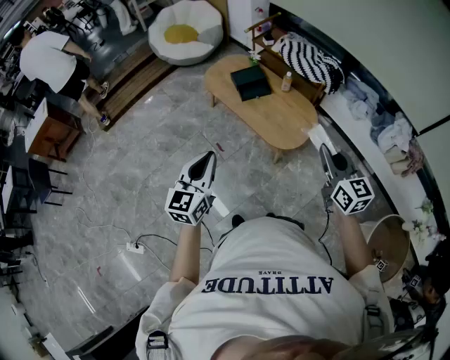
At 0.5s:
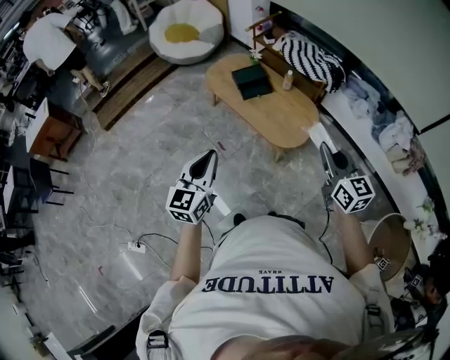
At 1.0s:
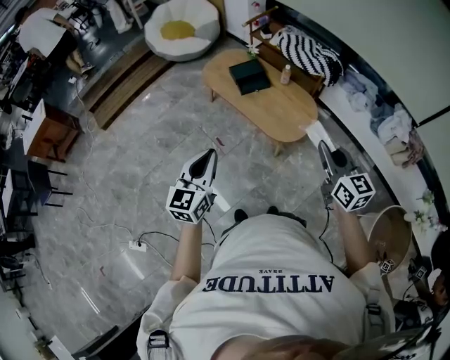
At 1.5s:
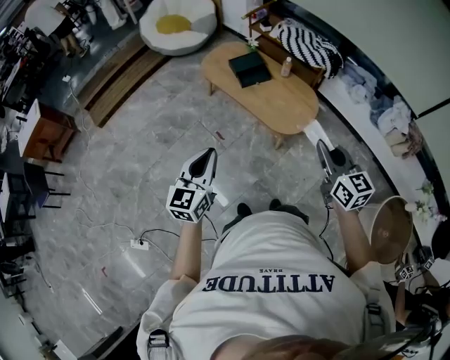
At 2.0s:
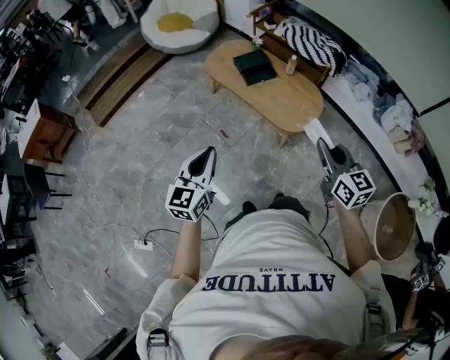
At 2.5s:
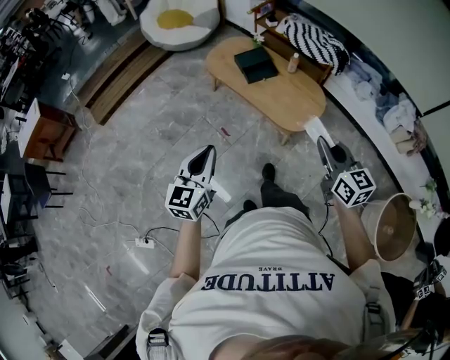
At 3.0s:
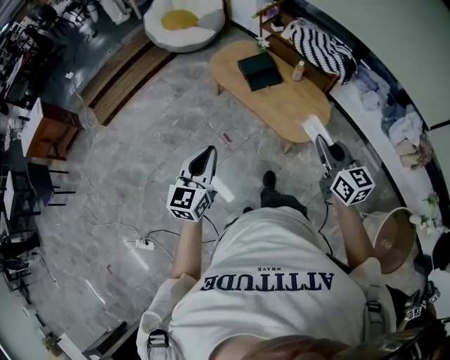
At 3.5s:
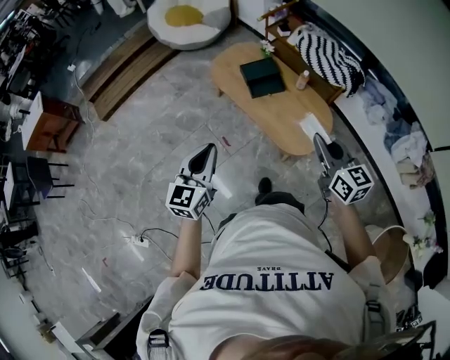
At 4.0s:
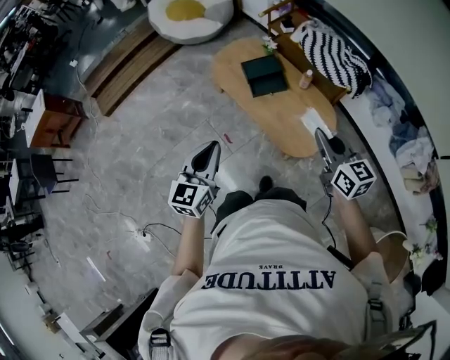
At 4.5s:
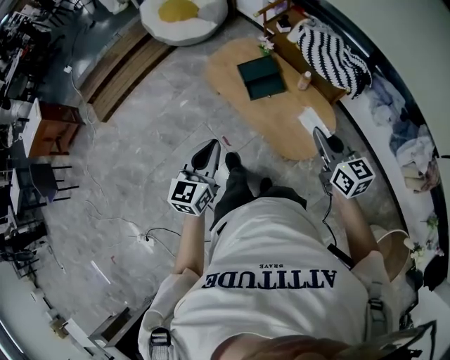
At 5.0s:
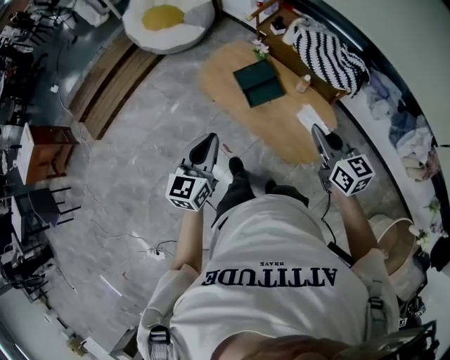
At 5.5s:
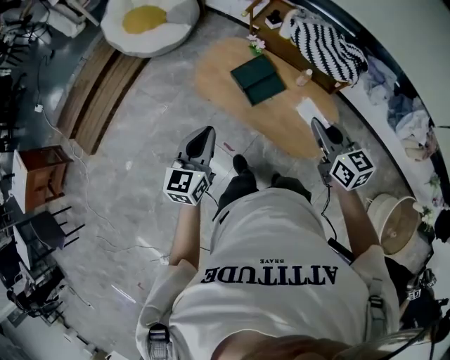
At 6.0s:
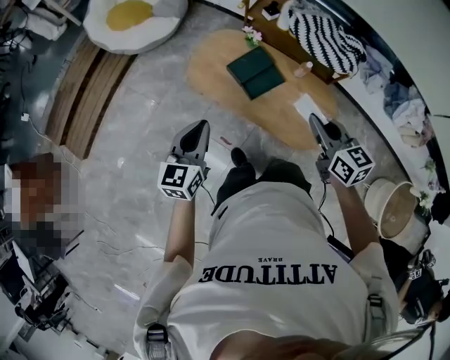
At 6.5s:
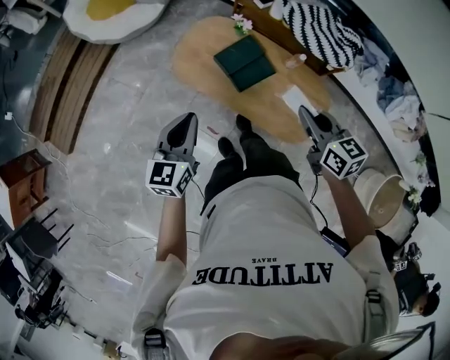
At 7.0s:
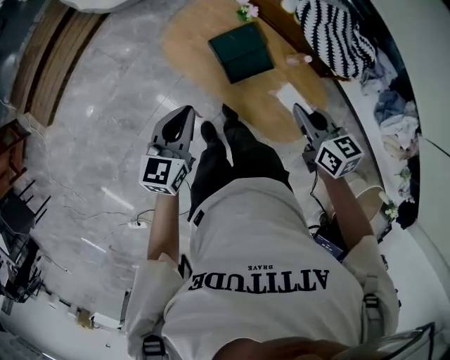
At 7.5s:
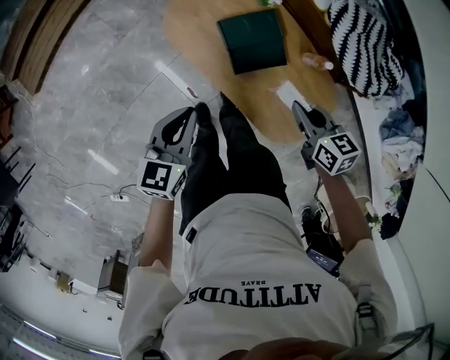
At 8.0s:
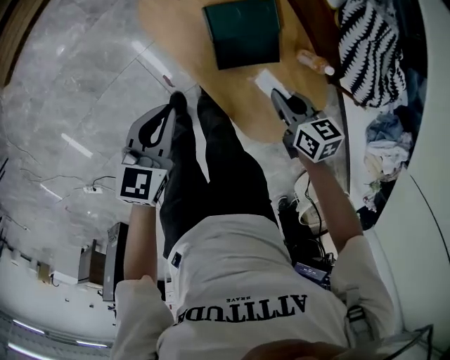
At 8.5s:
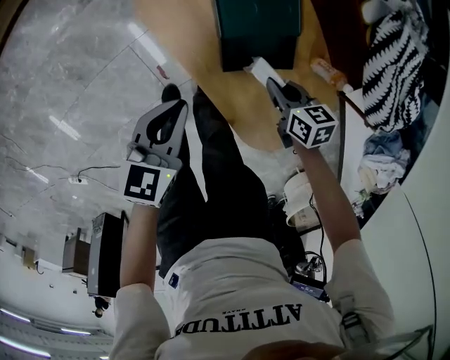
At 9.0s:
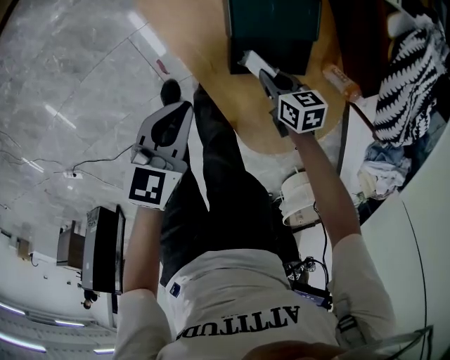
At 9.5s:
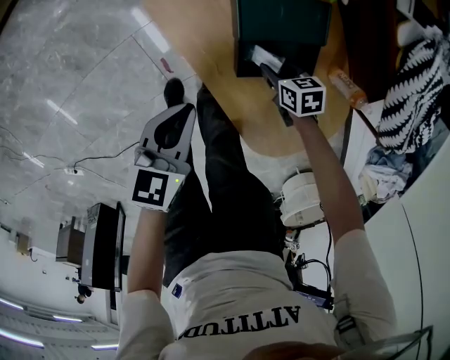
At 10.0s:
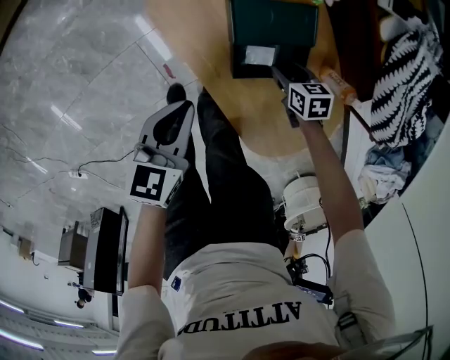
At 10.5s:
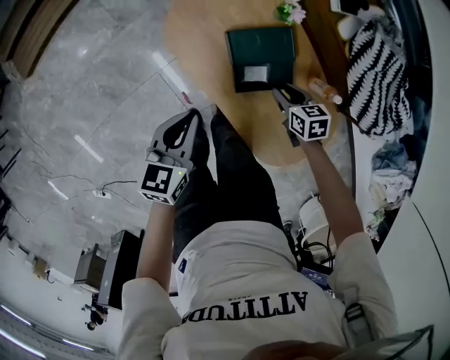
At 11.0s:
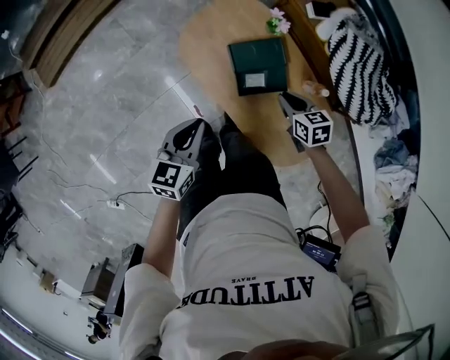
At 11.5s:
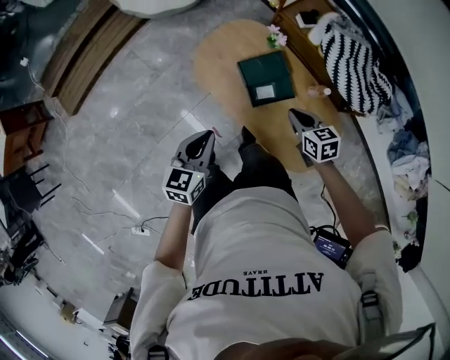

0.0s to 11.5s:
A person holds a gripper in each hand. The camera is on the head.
0.0s to 2.0s: The two grippers go about 10 cm to the left.
2.0s to 4.0s: The left gripper is displaced forward and to the right by about 30 cm. Meanwhile the right gripper heads forward, covering roughly 30 cm.
4.0s to 6.0s: Both grippers travel together forward and to the left, roughly 30 cm.
6.0s to 7.5s: The grippers both shift downward and forward by some 25 cm. The right gripper swivels about 30 degrees.
7.5s to 9.5s: The left gripper heads downward, covering roughly 25 cm. Meanwhile the right gripper heads downward, covering about 40 cm, turns by roughly 30 degrees, and opens its fingers.
9.5s to 11.5s: The two grippers go approximately 35 cm upward. The right gripper changes its angle by some 30 degrees, and closes its fingers.

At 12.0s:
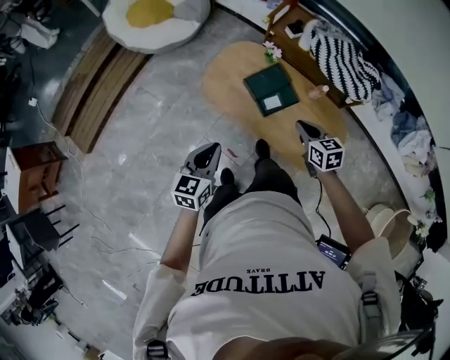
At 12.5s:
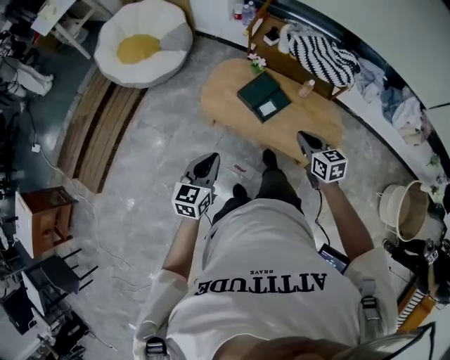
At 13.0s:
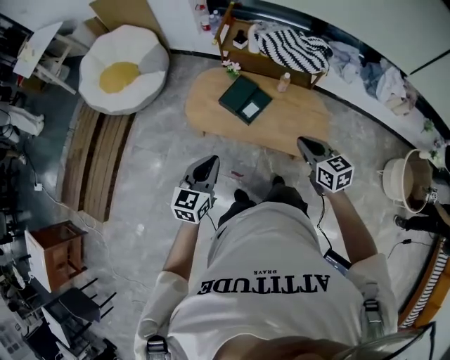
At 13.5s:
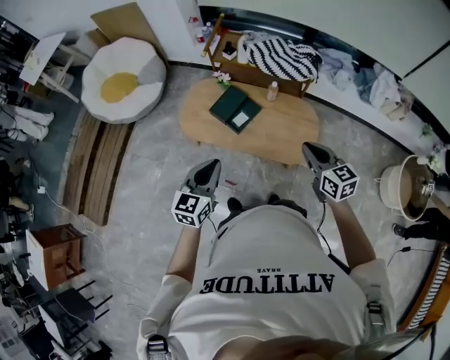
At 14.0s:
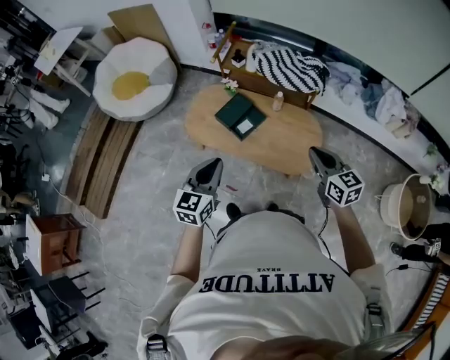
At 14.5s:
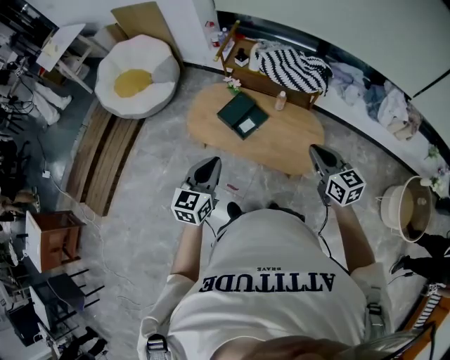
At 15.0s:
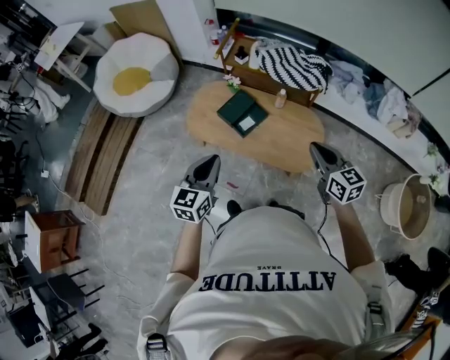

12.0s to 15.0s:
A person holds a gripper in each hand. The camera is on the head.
12.0s to 13.5s: The left gripper heads to the right, upward and backward, covering about 20 cm, and swivels about 20 degrees. Meanwhile the right gripper shifts roughly 30 cm backward, upward and to the right, and turns by some 20 degrees.
13.5s to 15.0s: The grippers move only a little.

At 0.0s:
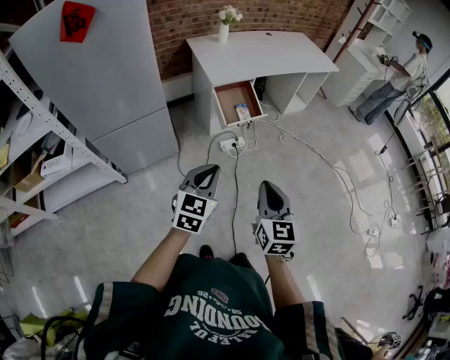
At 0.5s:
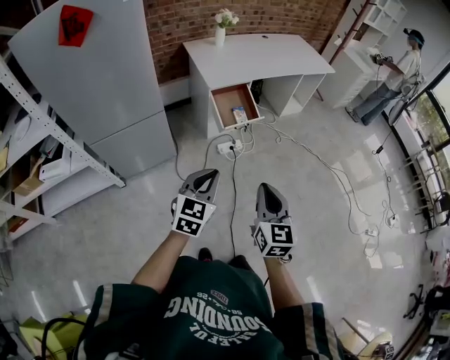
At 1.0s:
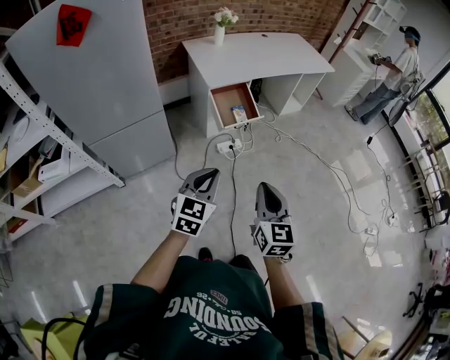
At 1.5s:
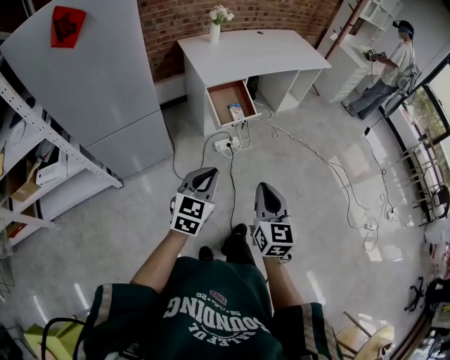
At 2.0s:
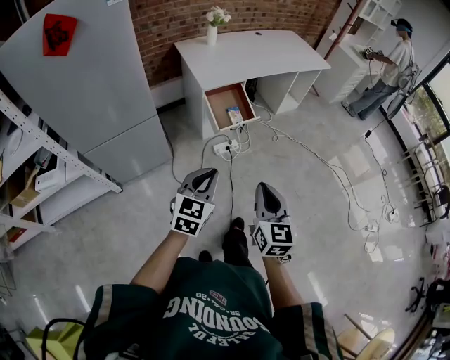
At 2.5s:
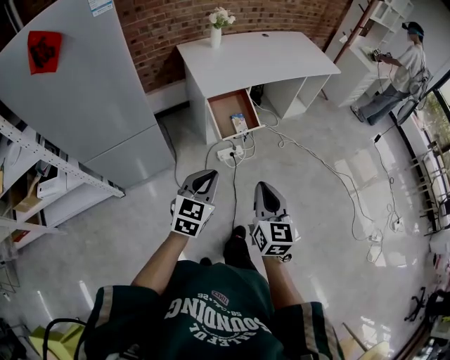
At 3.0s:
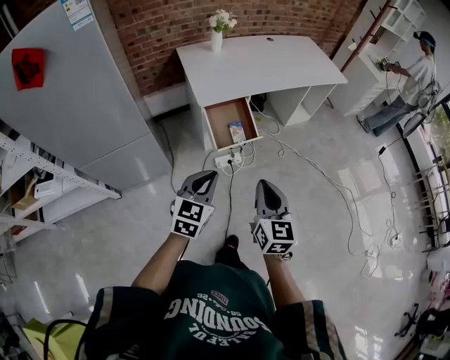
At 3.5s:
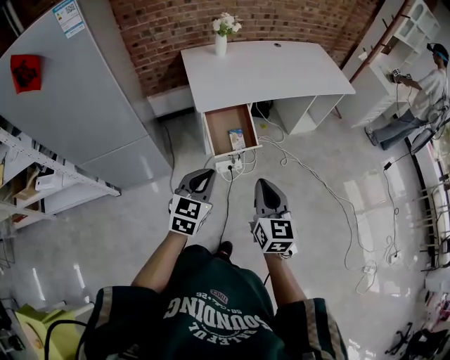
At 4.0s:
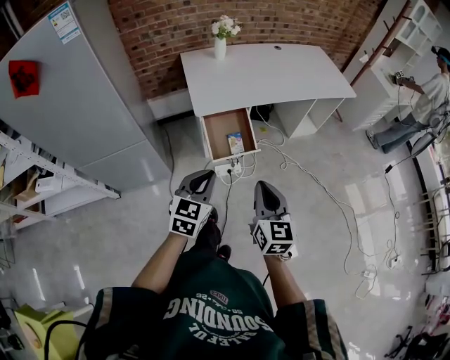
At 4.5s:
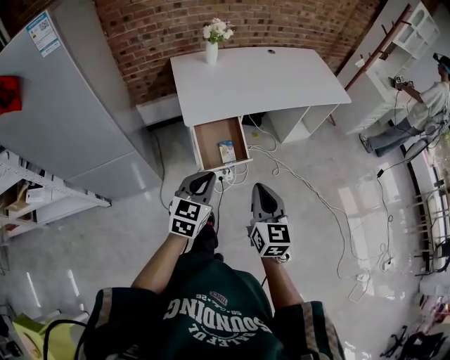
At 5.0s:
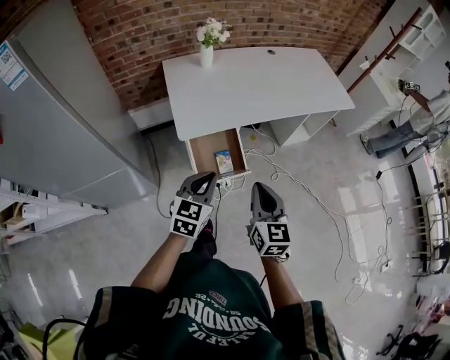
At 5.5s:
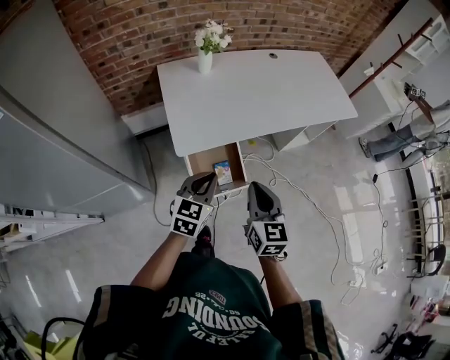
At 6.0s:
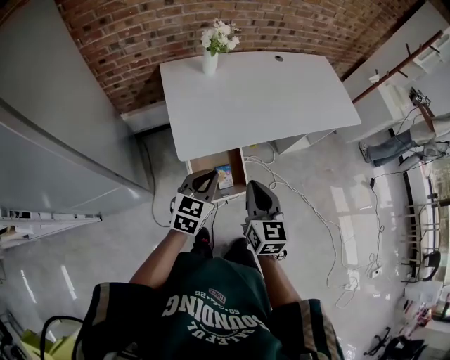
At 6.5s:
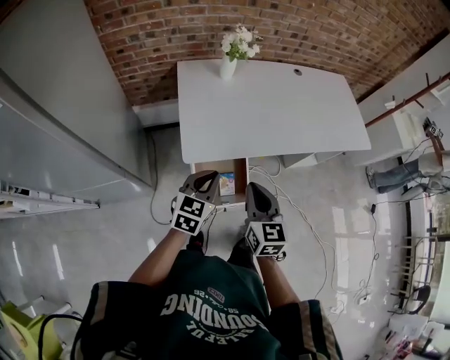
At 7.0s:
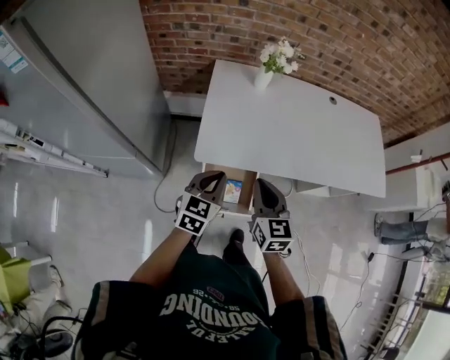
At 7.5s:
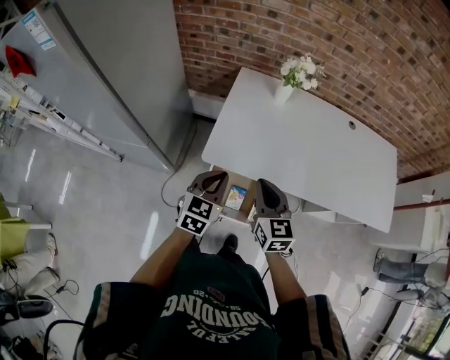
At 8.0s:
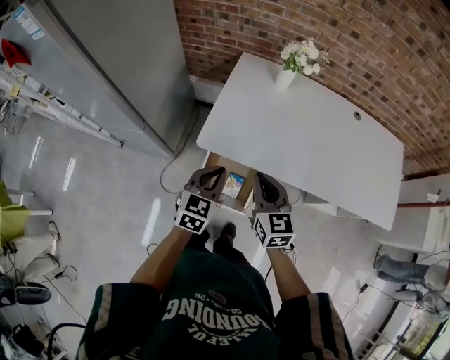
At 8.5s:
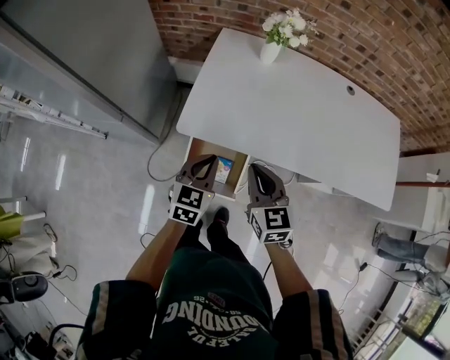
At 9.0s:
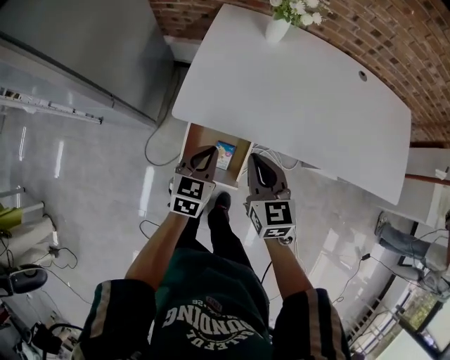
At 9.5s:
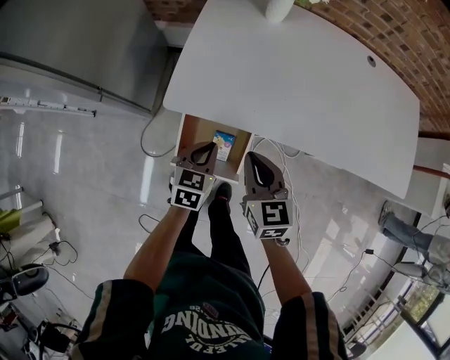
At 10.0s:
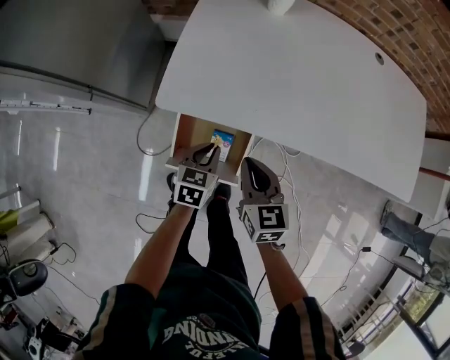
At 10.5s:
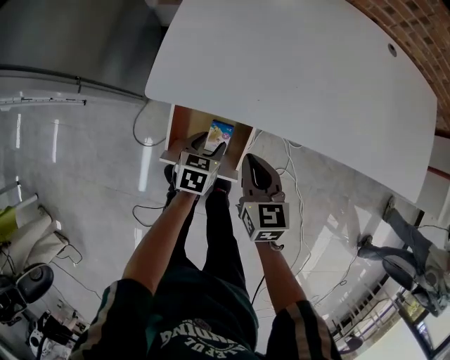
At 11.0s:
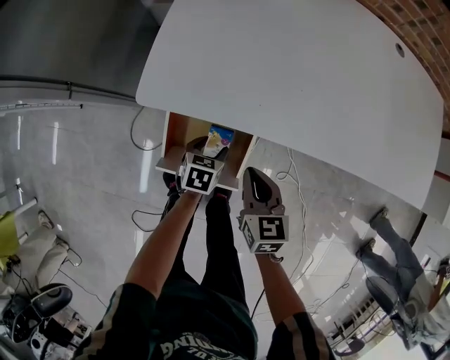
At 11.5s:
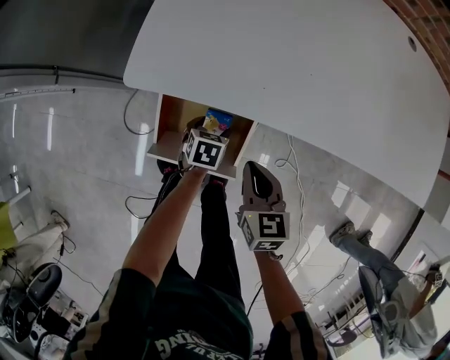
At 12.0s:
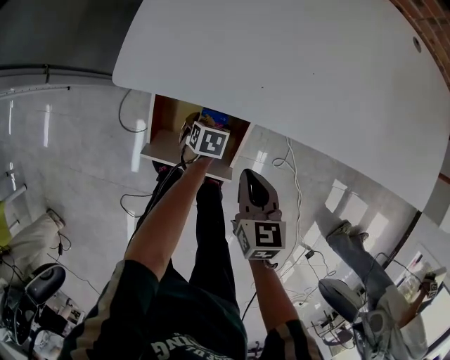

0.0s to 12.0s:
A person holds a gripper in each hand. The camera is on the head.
0.0s to 2.0s: The grippers make only small movements.
2.0s to 4.0s: Both grippers travel together forward, some 25 cm.
4.0s to 6.0s: Both grippers move forward, about 30 cm.
6.0s to 8.0s: The left gripper shifts by approximately 5 cm, and swivels approximately 40 degrees, while the right gripper ends up roughly 15 cm from where it was, and changes its angle by approximately 40 degrees.
8.0s to 10.0s: The two grippers go about 20 cm downward. The left gripper swivels some 20 degrees.
10.0s to 12.0s: The right gripper travels downward by some 15 cm; the left gripper moves downward, about 25 cm, turns by approximately 30 degrees, and opens.
